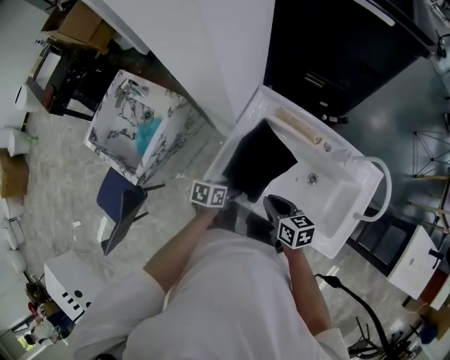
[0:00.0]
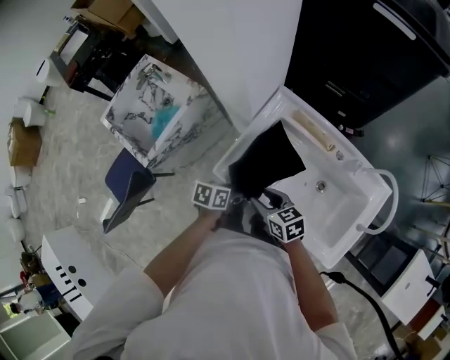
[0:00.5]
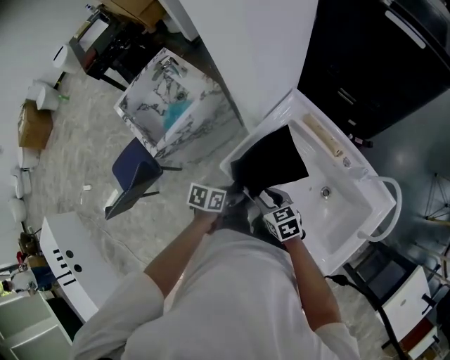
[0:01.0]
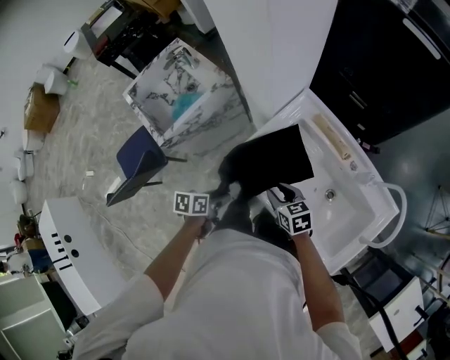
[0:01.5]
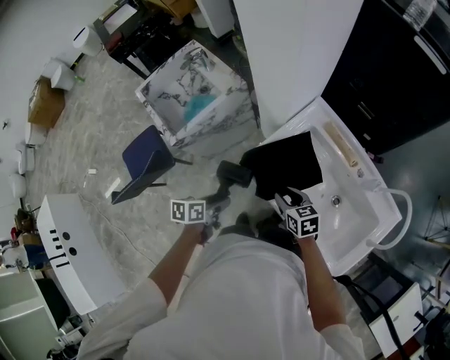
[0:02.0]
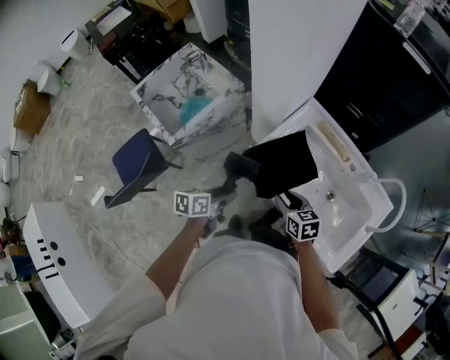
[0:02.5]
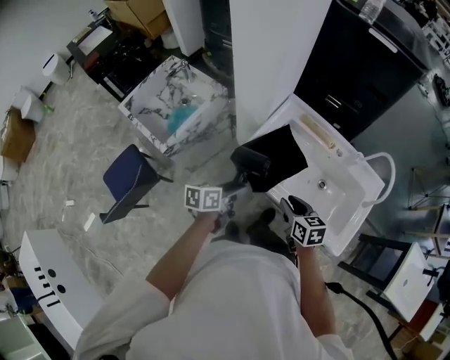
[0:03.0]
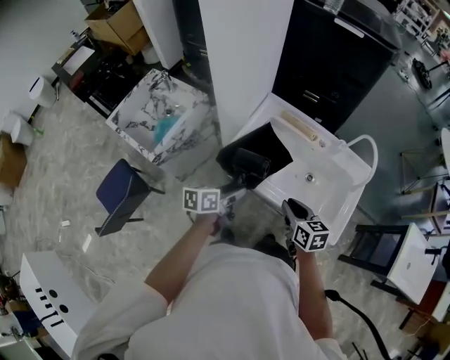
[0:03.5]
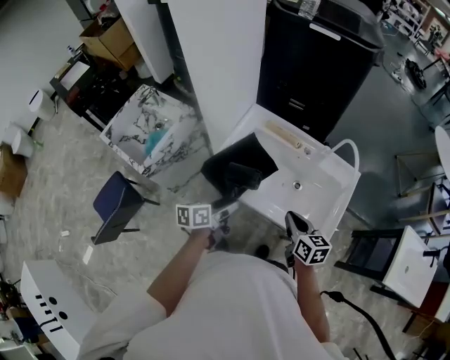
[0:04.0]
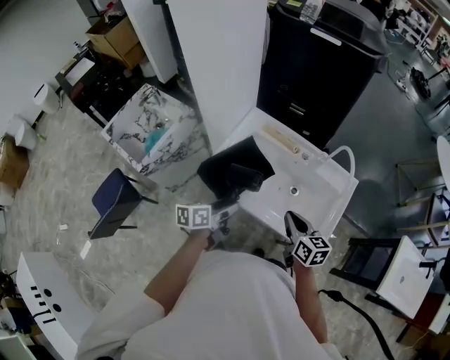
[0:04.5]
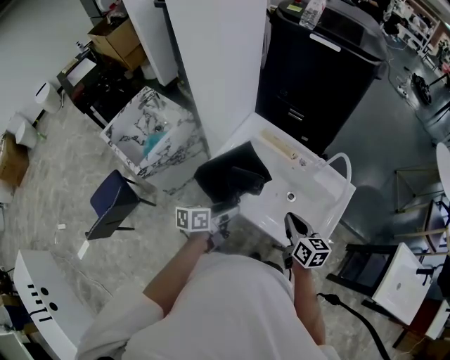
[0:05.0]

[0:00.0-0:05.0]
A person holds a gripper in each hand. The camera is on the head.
0:00.0 to 0:02.5: The right gripper moves approximately 10 cm, swivels roughly 20 degrees, and opens up; the left gripper changes place by about 20 cm, and swivels about 30 degrees.
0:02.5 to 0:05.0: The left gripper moves to the right, roughly 20 cm; the right gripper heads to the right and upward, covering approximately 25 cm, changes its angle by roughly 30 degrees, and closes its fingers.

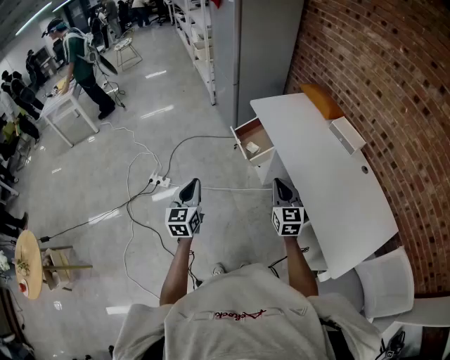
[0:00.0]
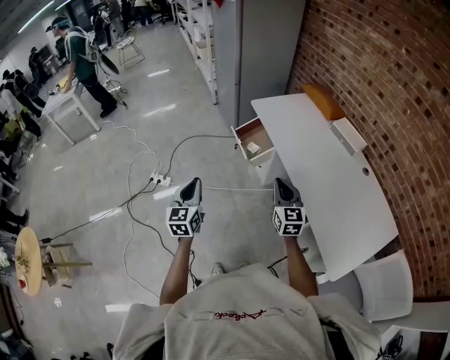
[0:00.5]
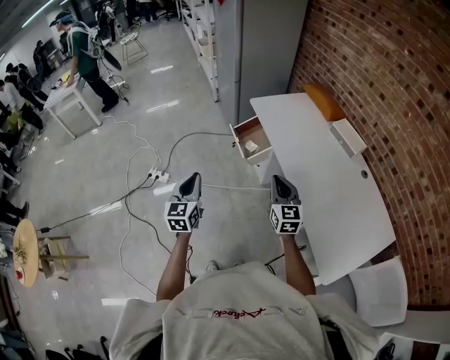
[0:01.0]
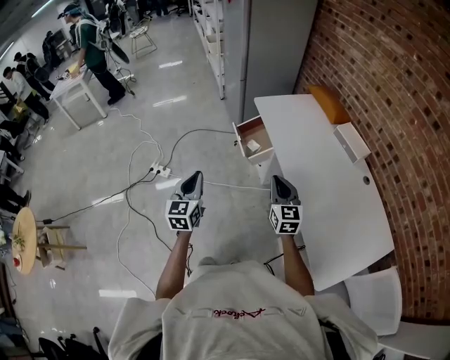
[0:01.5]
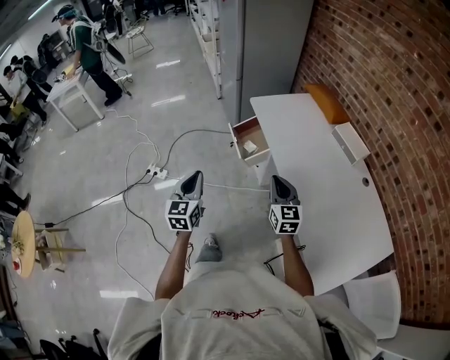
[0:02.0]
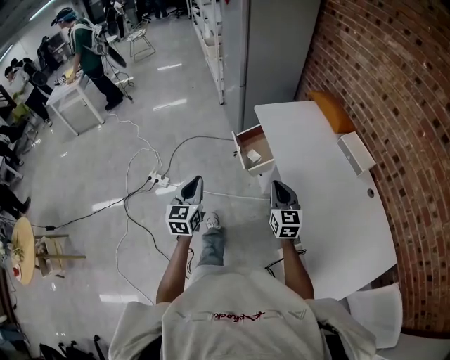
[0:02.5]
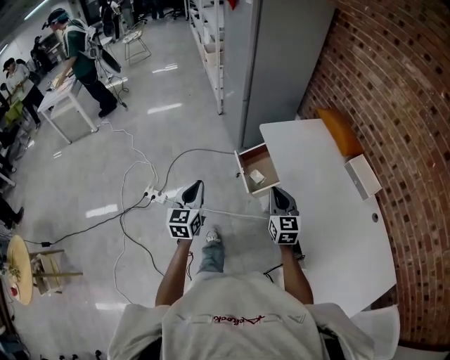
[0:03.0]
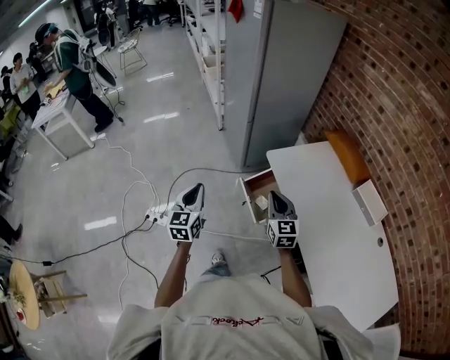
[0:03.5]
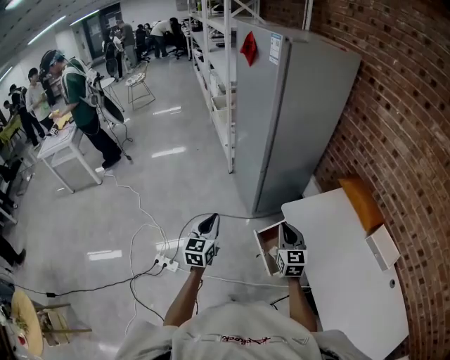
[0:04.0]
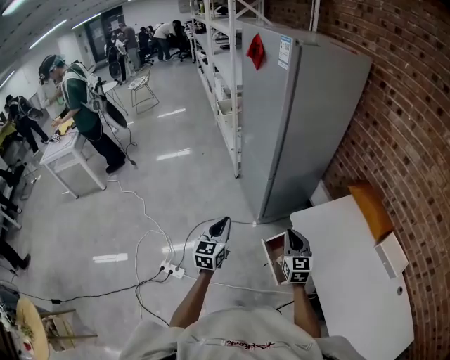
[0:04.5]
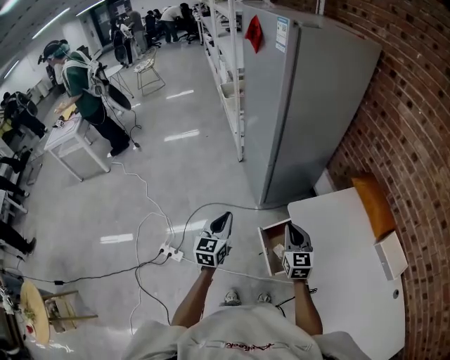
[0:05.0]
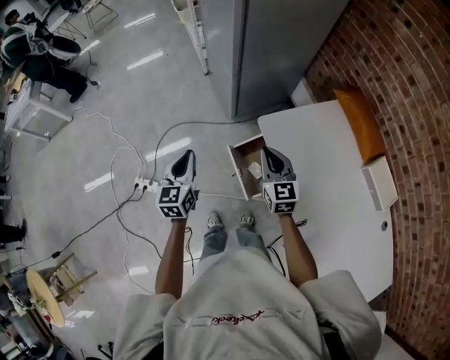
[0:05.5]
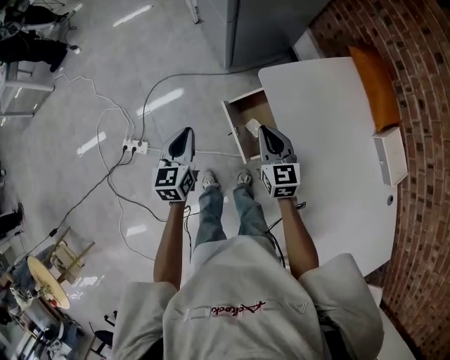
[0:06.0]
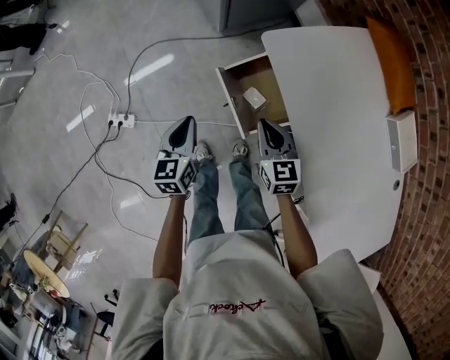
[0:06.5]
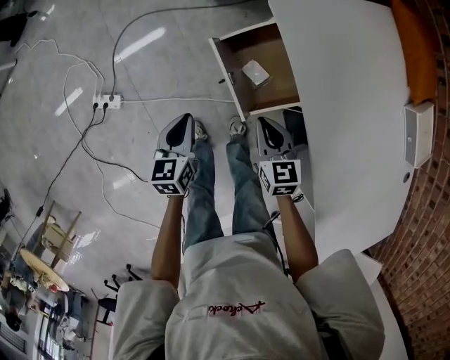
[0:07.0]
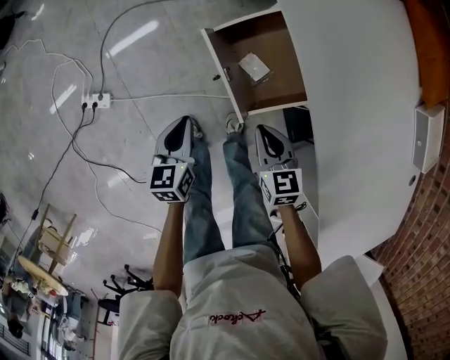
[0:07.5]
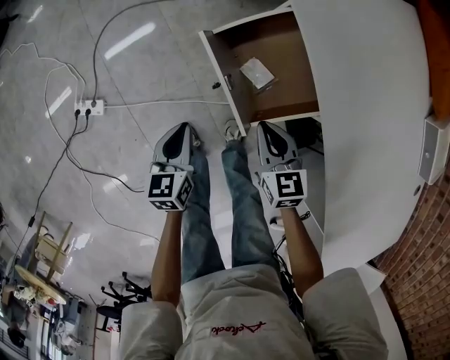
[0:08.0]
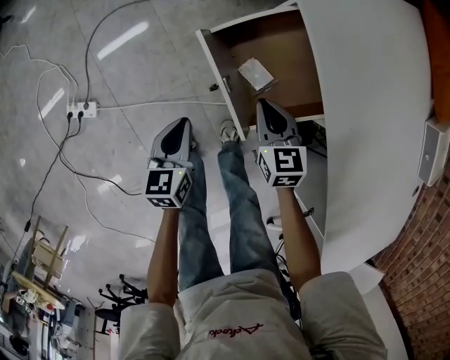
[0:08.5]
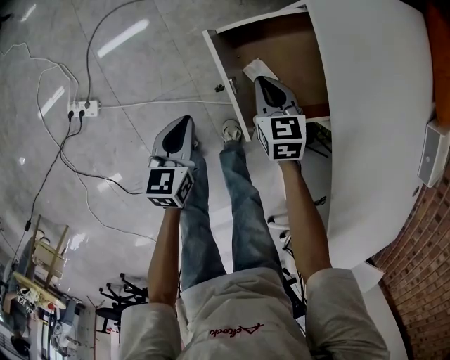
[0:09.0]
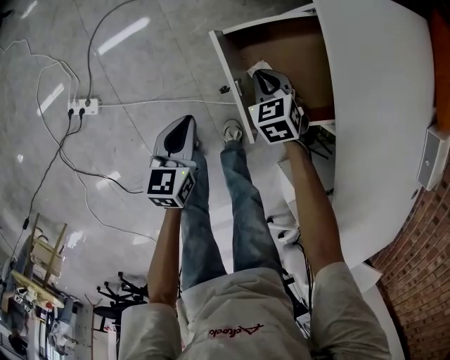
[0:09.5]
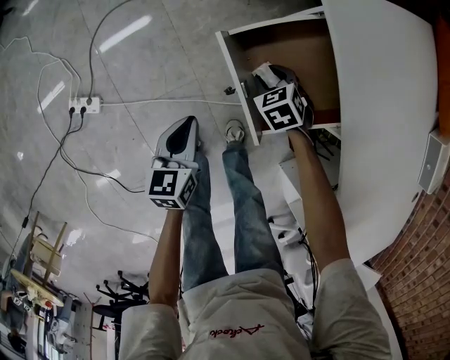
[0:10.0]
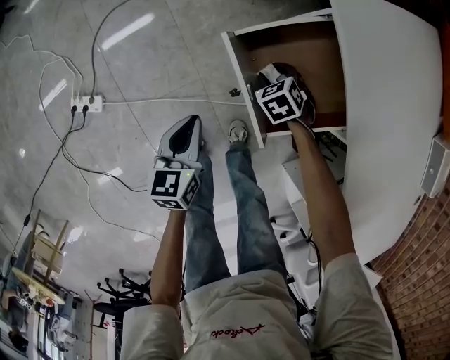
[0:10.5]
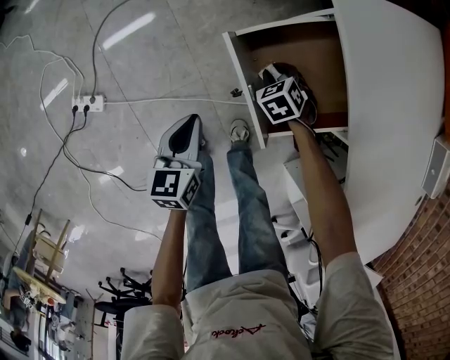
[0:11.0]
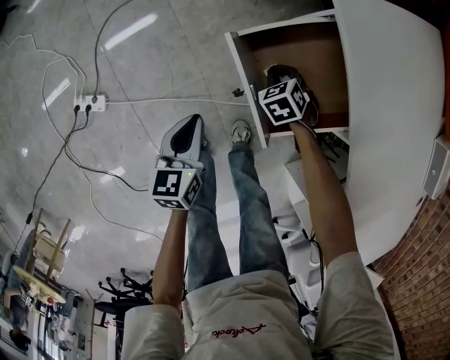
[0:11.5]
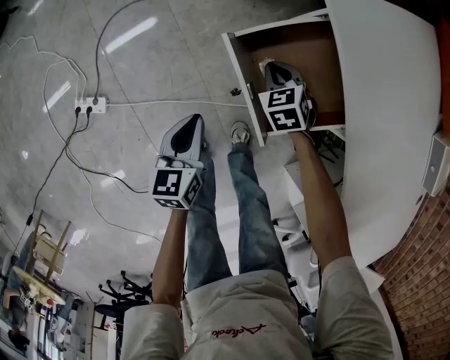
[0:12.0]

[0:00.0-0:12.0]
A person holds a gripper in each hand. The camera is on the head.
0:00.0 to 0:02.0: The left gripper moves to the right, about 10 cm. The right gripper travels to the right and forward by approximately 10 cm.
0:02.0 to 0:04.0: Both grippers are carried forward, roughly 50 cm.
0:04.0 to 0:06.0: The left gripper shifts approximately 20 cm downward and to the right. Meanwhile the right gripper shifts roughly 15 cm downward.
0:06.0 to 0:08.0: The two grippers go roughly 25 cm downward.
0:08.0 to 0:10.0: The right gripper travels downward and forward by approximately 20 cm, changes its angle by about 40 degrees, and opens.
0:10.0 to 0:12.0: The right gripper closes its fingers.

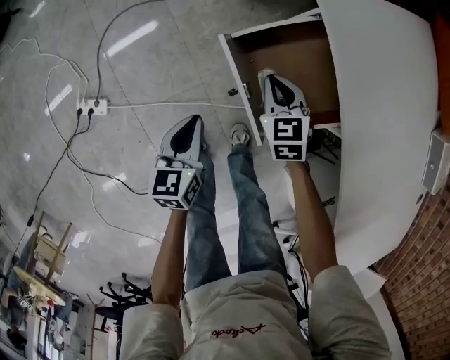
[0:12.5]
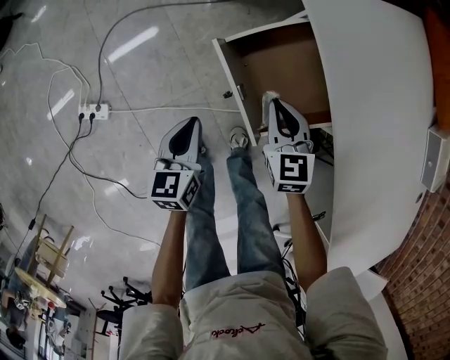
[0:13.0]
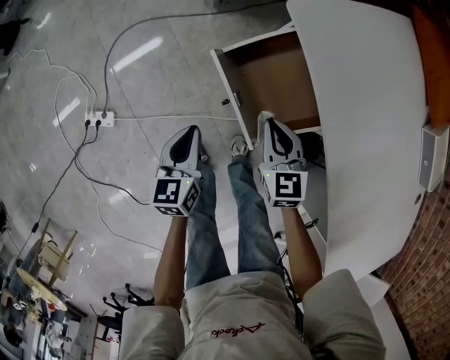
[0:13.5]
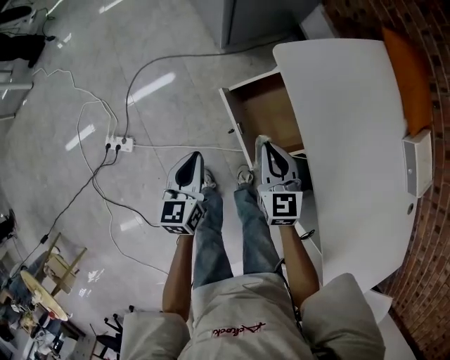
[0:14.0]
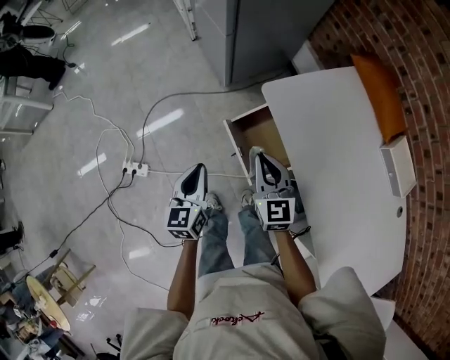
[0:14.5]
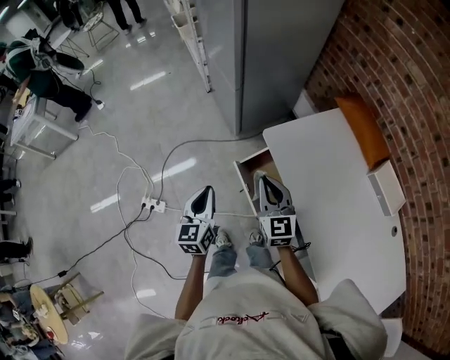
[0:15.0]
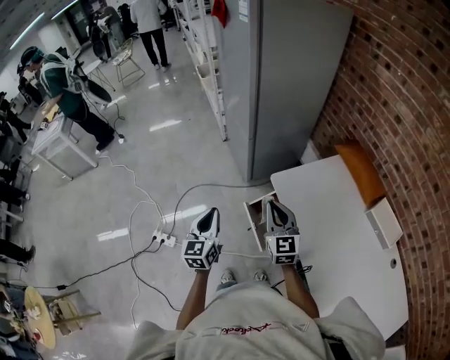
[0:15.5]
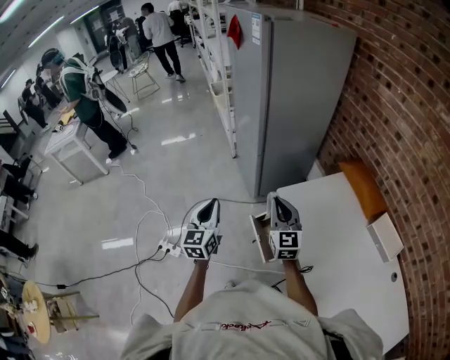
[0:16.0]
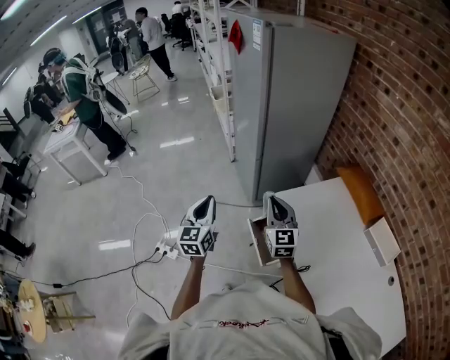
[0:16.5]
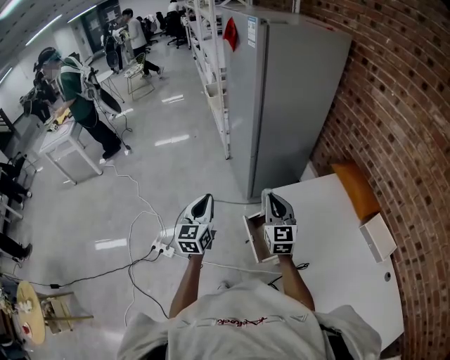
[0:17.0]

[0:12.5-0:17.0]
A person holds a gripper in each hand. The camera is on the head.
0:12.5 to 0:14.5: The two grippers go some 25 cm upward. The right gripper changes its angle by approximately 30 degrees.
0:14.5 to 0:17.0: The grippers both shift upward by approximately 25 cm. The left gripper swivels roughly 20 degrees.

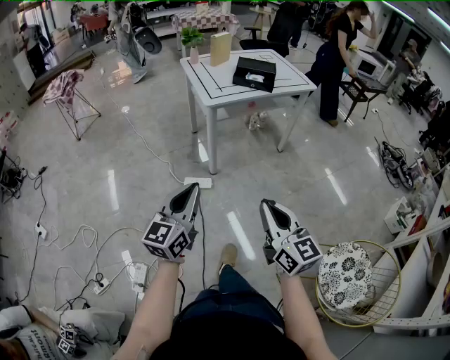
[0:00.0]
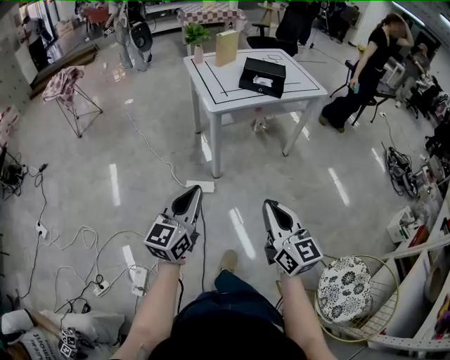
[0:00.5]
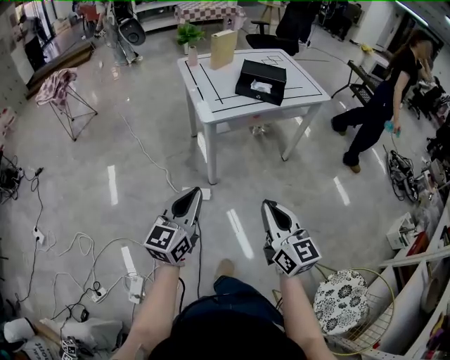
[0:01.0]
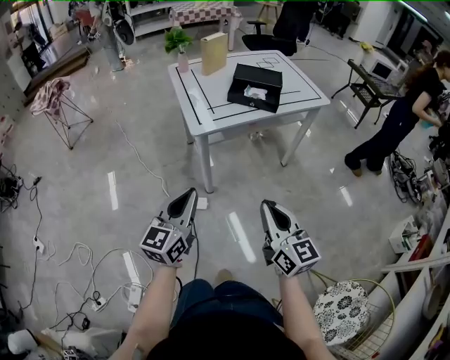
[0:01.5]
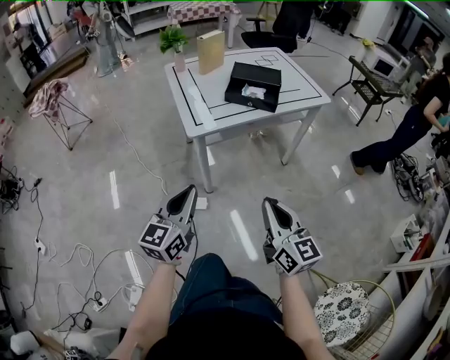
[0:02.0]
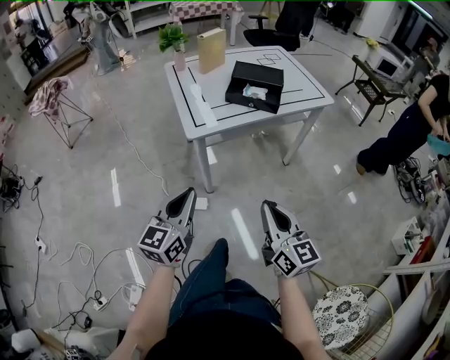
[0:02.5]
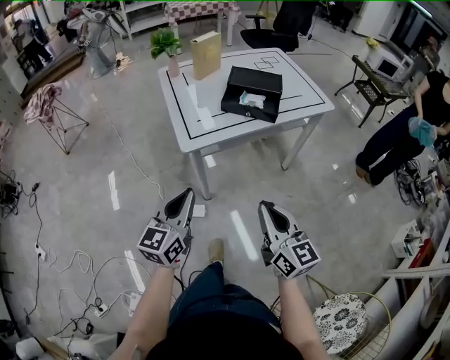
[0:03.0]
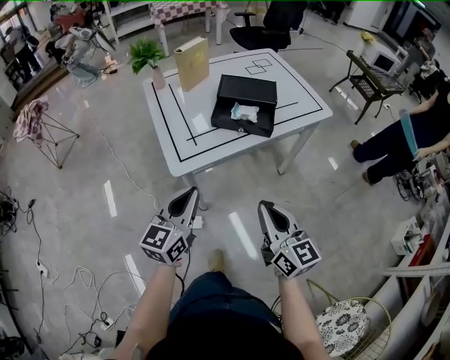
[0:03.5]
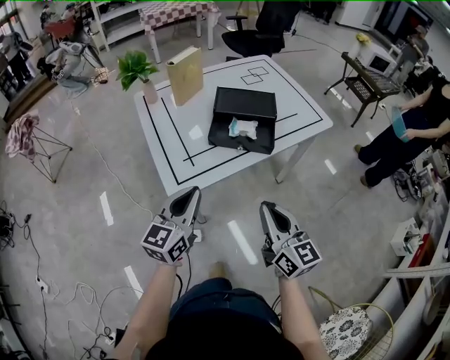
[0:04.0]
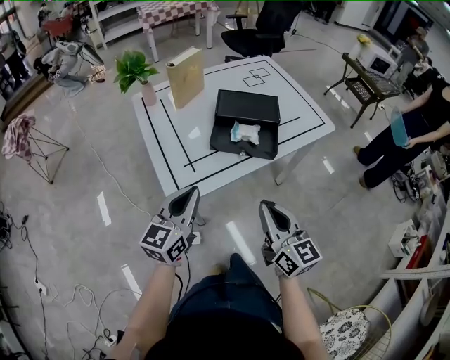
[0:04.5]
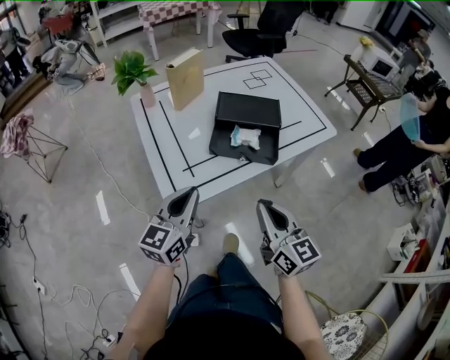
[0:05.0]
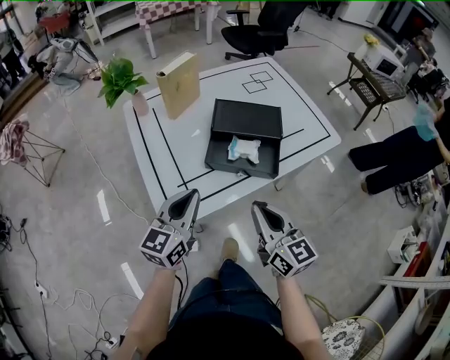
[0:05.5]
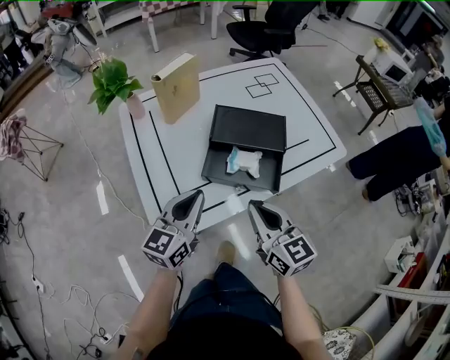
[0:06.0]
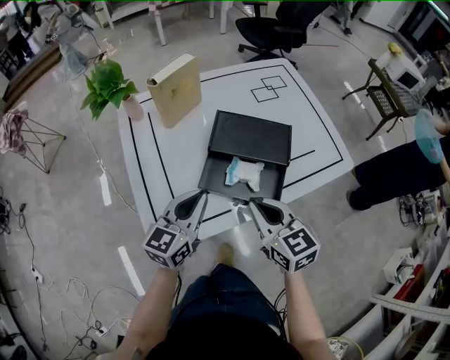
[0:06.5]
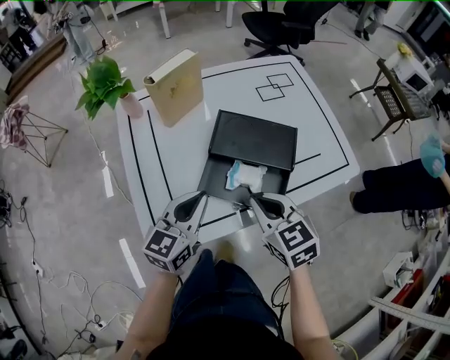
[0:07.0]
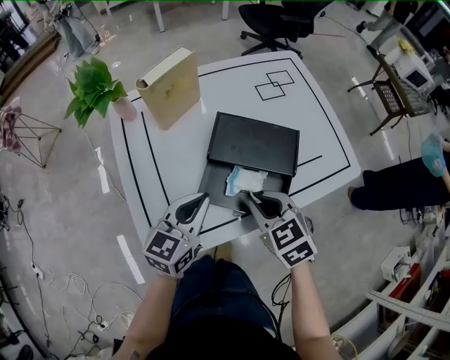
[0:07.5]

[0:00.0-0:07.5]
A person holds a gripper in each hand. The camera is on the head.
0:00.0 to 0:02.0: The two grippers go approximately 30 cm forward.
0:02.0 to 0:04.0: The two grippers go some 25 cm forward.
0:04.0 to 0:05.5: The two grippers go approximately 10 cm forward.
0:05.5 to 0:07.5: The left gripper travels forward and to the right by approximately 15 cm. Meanwhile the right gripper moves forward and downward, roughly 20 cm, and points its fingers about 40 degrees further downward.
